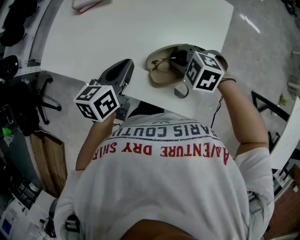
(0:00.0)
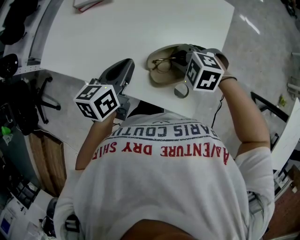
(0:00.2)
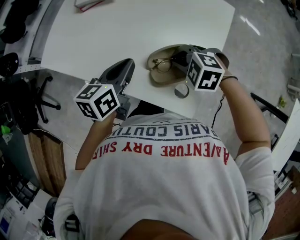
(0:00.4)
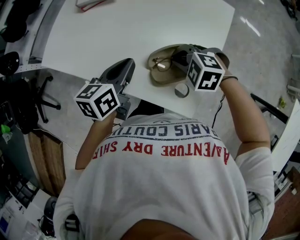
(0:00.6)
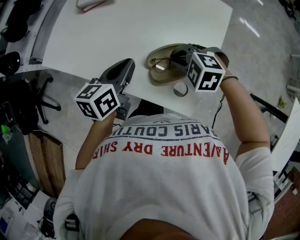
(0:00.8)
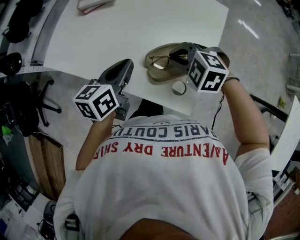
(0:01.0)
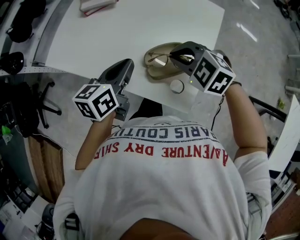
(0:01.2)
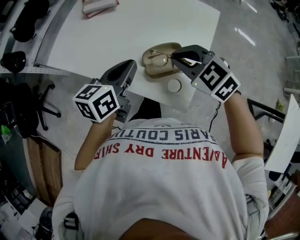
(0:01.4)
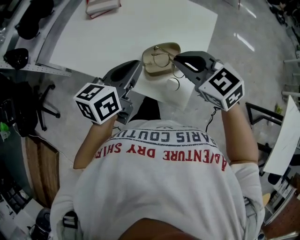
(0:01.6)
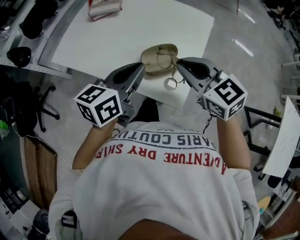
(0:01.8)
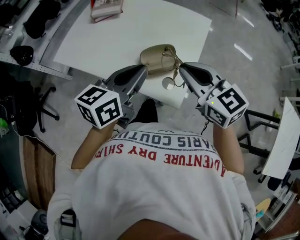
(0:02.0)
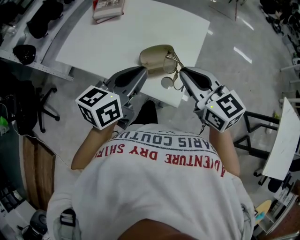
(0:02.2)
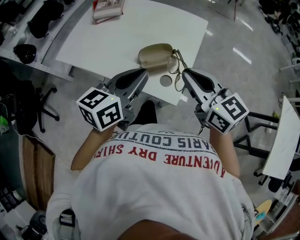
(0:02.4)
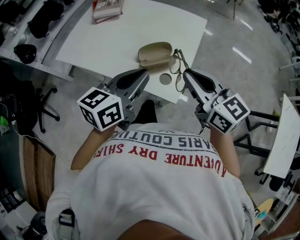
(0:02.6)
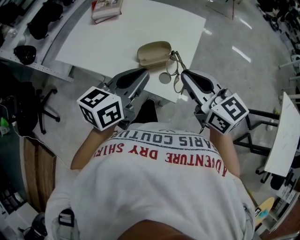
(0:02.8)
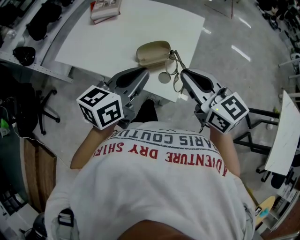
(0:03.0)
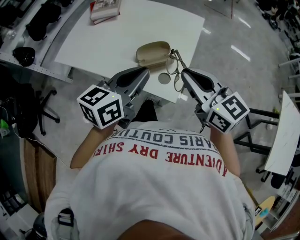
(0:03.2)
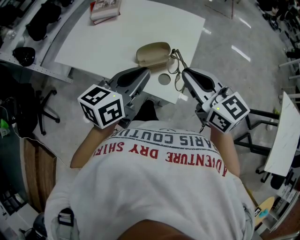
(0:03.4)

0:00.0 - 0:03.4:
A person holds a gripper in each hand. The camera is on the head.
0:00.0 - 0:01.6: The right gripper heads upward, covering roughly 15 cm, and rotates some 40 degrees; the left gripper travels upward and backward by roughly 10 cm.
0:01.6 - 0:03.4: The right gripper heads backward, upward and to the right, covering about 15 cm, and changes its angle by roughly 30 degrees. Meanwhile the left gripper shifts roughly 10 cm backward and to the right.

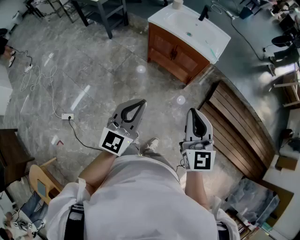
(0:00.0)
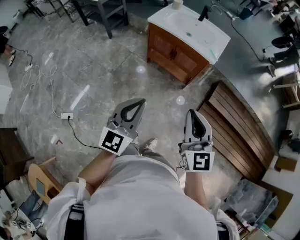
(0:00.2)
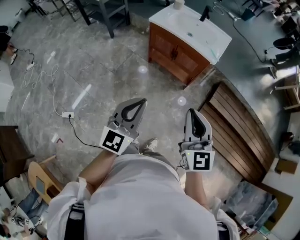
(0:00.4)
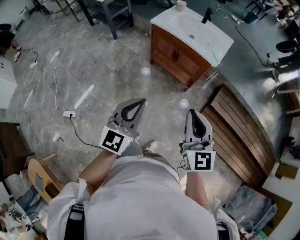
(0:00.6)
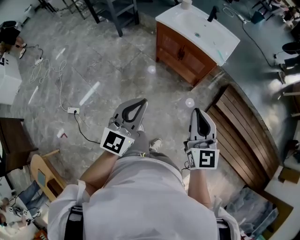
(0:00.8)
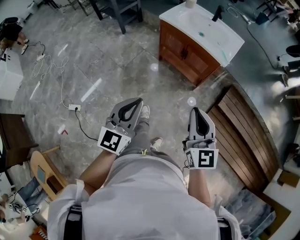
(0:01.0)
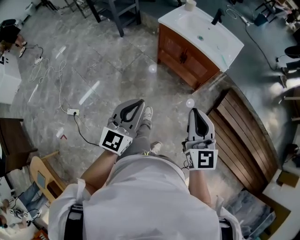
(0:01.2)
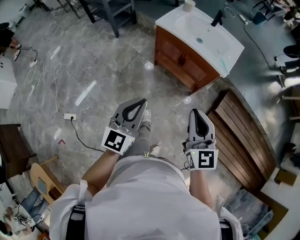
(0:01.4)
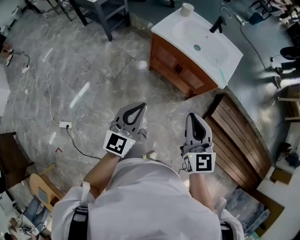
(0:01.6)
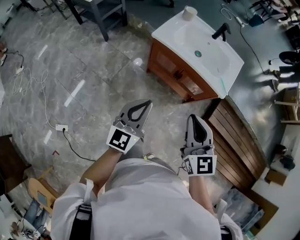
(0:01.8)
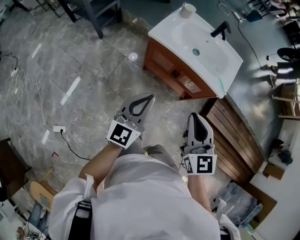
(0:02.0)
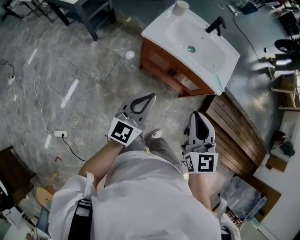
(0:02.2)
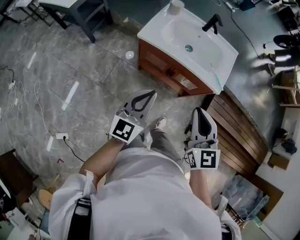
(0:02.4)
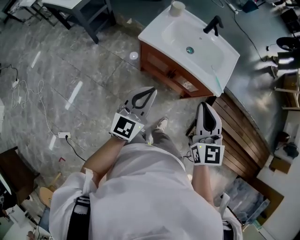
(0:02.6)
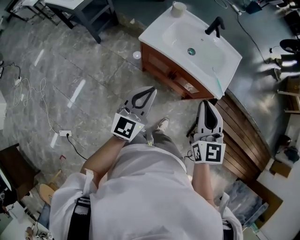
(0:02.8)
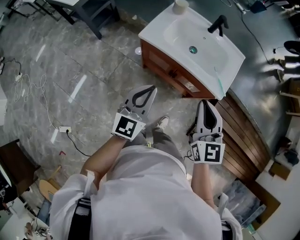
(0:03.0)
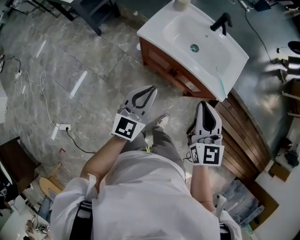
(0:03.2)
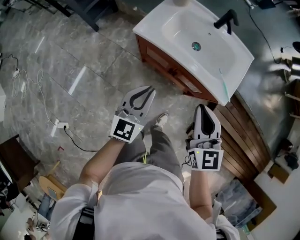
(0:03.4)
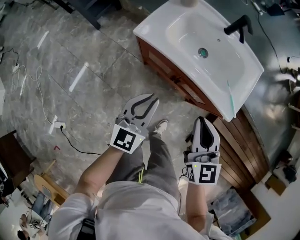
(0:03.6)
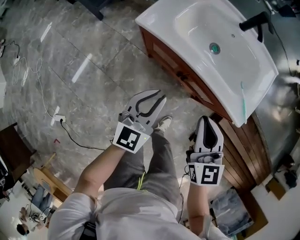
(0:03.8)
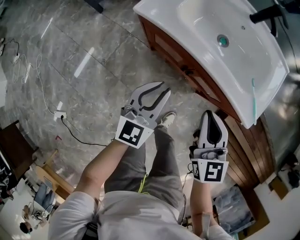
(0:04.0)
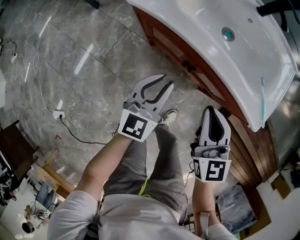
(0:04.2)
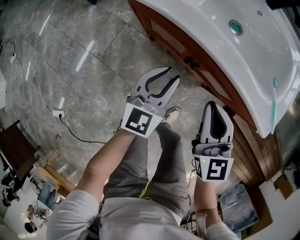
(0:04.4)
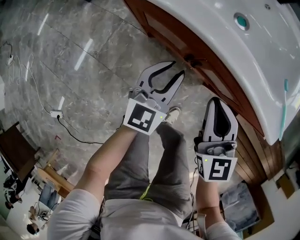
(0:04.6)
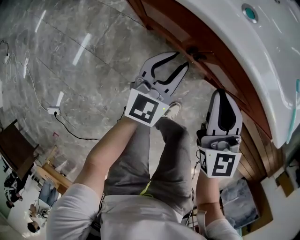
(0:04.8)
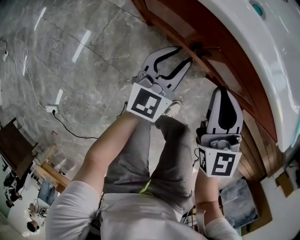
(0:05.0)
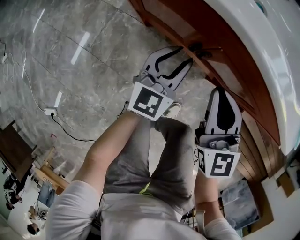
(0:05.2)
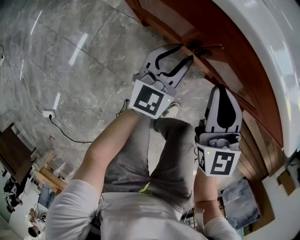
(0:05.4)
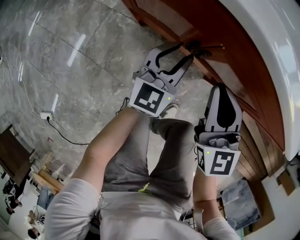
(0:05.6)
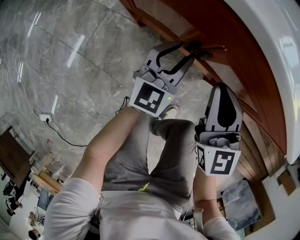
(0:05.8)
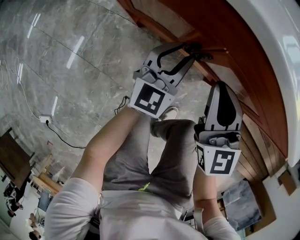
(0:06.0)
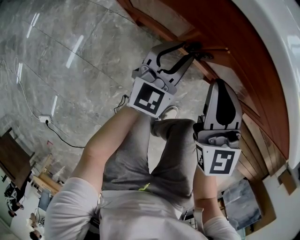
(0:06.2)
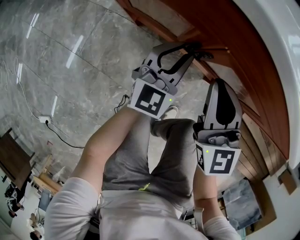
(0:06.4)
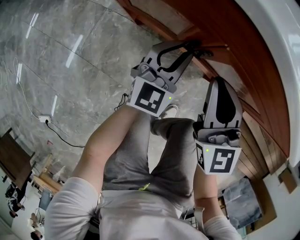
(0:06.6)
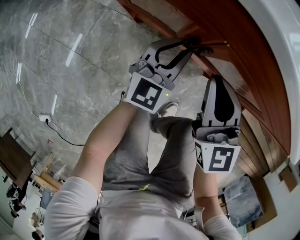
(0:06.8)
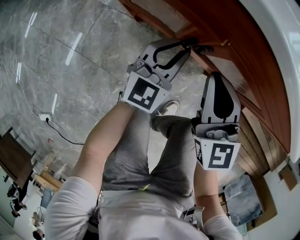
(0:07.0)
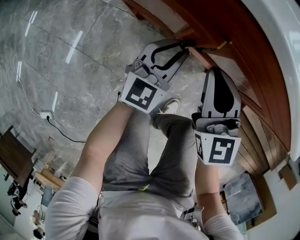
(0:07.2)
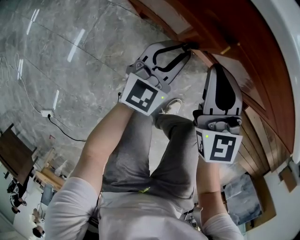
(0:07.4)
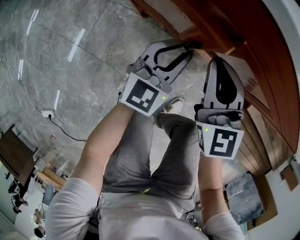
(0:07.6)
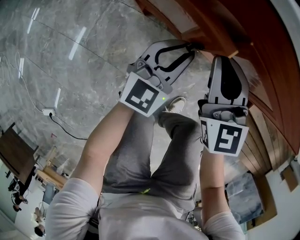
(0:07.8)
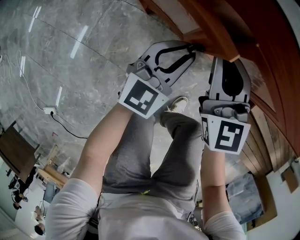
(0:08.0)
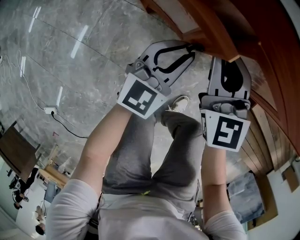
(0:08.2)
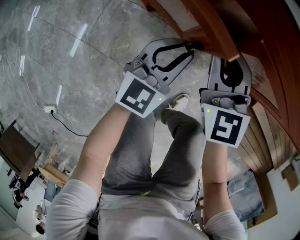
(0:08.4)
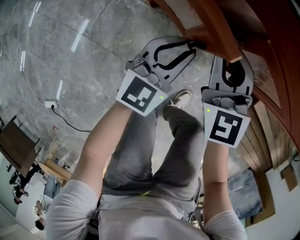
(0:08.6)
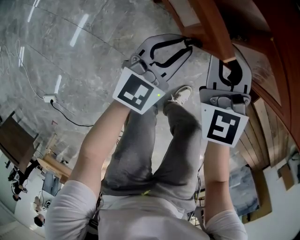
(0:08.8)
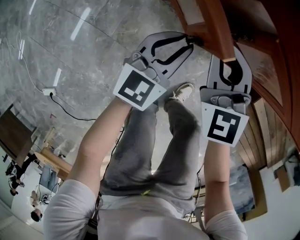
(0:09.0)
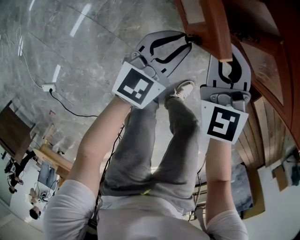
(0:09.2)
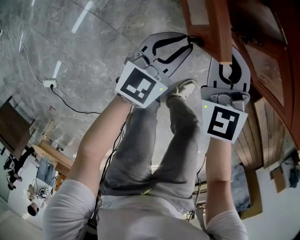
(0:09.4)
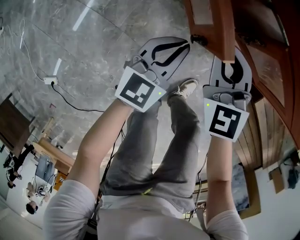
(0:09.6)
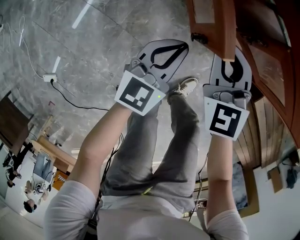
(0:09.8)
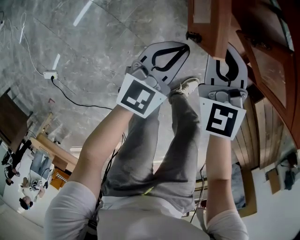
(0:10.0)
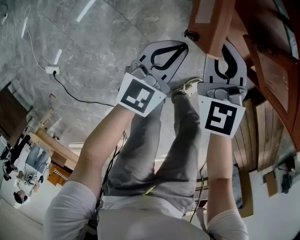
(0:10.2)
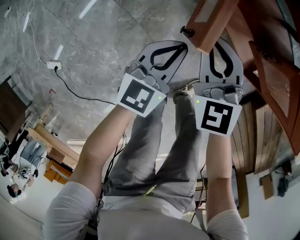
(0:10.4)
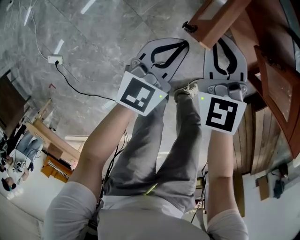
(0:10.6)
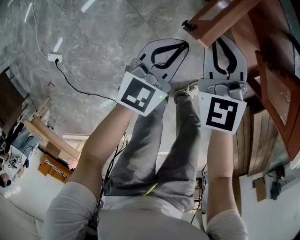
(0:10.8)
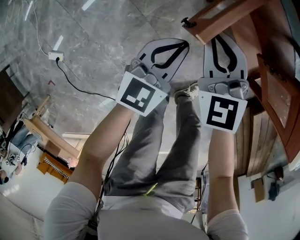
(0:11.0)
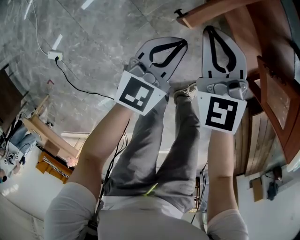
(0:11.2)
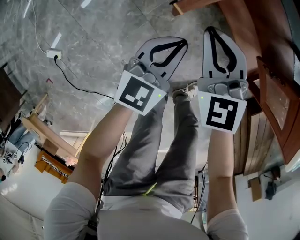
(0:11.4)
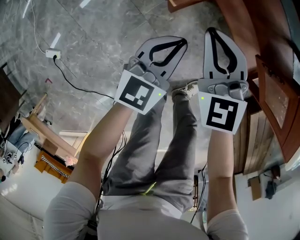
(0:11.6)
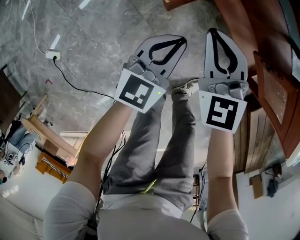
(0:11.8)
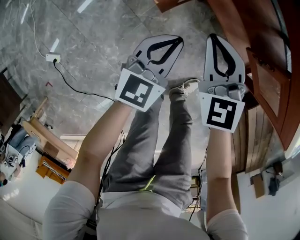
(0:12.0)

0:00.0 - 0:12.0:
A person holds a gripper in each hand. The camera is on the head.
0:00.0 - 0:01.6: Both grippers travel together forward, roughly 20 cm.
0:01.6 - 0:03.0: Both grippers travel together forward, roughly 25 cm.
0:03.0 - 0:04.4: Both grippers move downward, some 35 cm. The left gripper opens.
0:04.4 - 0:06.0: Both grippers move downward, about 20 cm.
0:06.0 - 0:07.6: The grippers move only a little.
0:07.6 - 0:09.0: The left gripper heads to the left and backward, covering some 10 cm, while the right gripper heads to the left, covering about 10 cm.
0:09.0 - 0:10.4: The right gripper travels to the left by about 15 cm; the left gripper moves to the left and backward, some 15 cm.
0:10.4 - 0:12.0: The right gripper goes to the left and returns, about 10 cm each way; the left gripper changes place by about 5 cm.

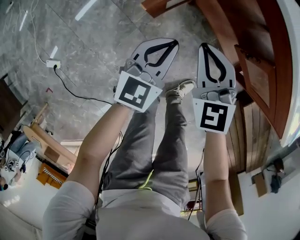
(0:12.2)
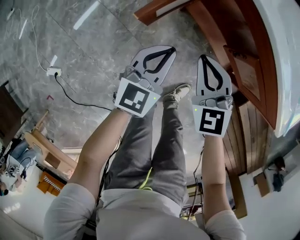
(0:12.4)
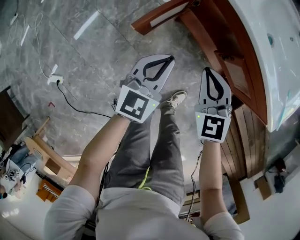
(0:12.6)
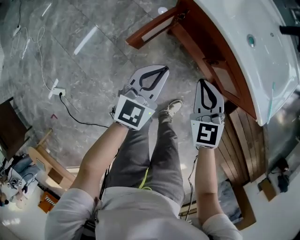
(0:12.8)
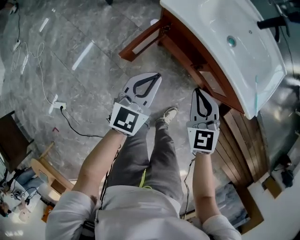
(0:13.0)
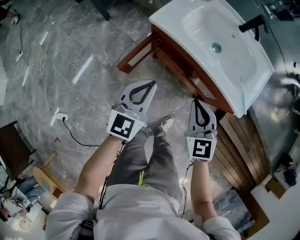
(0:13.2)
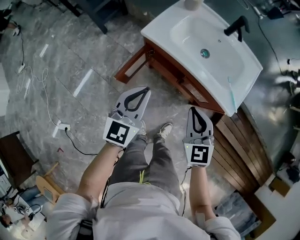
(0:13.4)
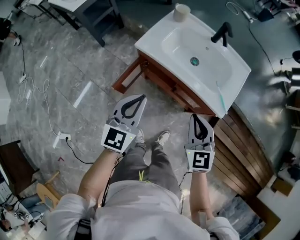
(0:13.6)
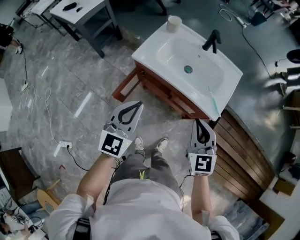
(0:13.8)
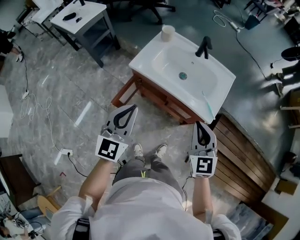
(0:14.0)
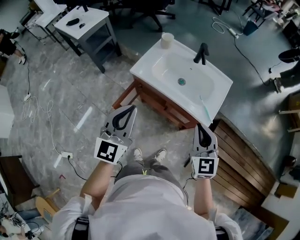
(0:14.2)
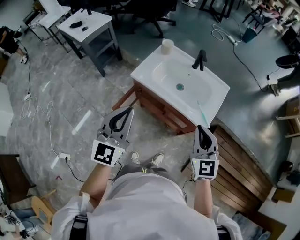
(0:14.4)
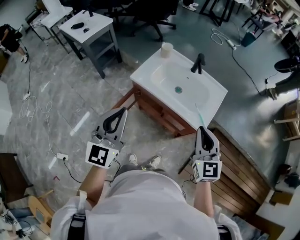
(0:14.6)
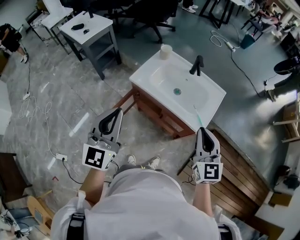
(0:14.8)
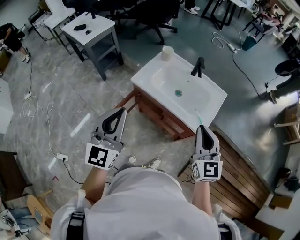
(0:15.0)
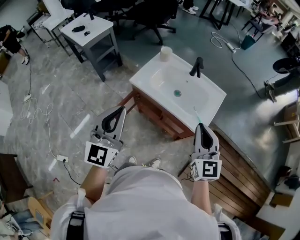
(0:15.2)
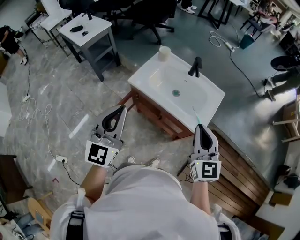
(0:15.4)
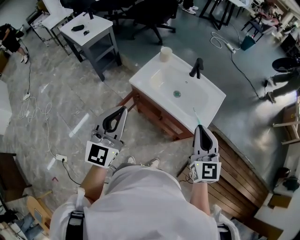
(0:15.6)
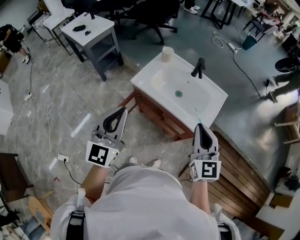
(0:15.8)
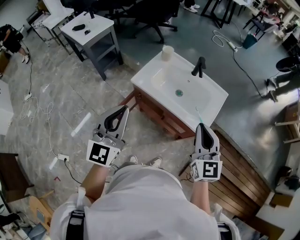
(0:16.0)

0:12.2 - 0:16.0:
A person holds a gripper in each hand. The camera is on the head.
0:12.2 - 0:13.4: The left gripper heads upward, covering some 35 cm; the right gripper shifts about 35 cm upward and to the right, and swivels some 20 degrees.
0:13.4 - 0:14.8: The right gripper heads upward and to the right, covering some 25 cm; the left gripper shifts some 25 cm upward.
0:14.8 - 0:16.0: The grippers make only small movements.

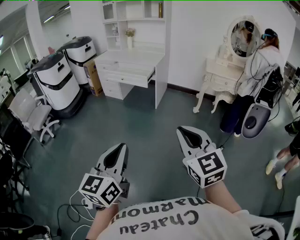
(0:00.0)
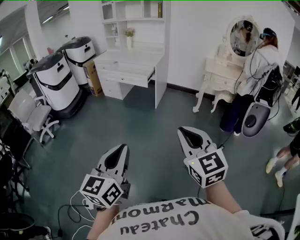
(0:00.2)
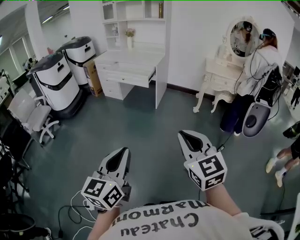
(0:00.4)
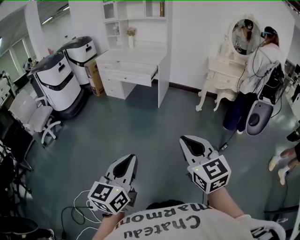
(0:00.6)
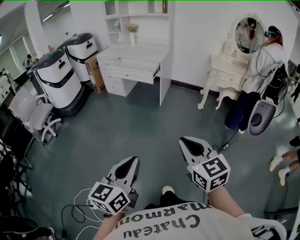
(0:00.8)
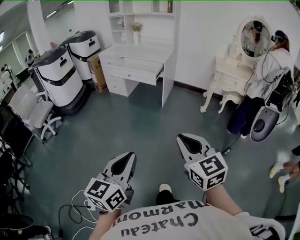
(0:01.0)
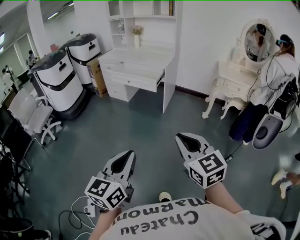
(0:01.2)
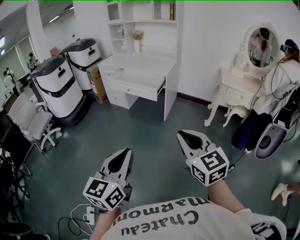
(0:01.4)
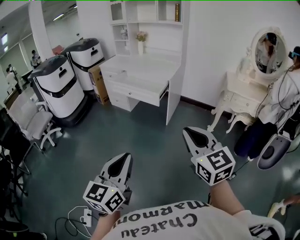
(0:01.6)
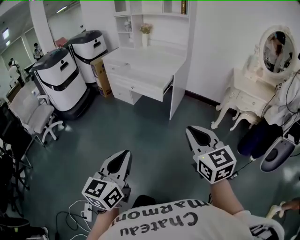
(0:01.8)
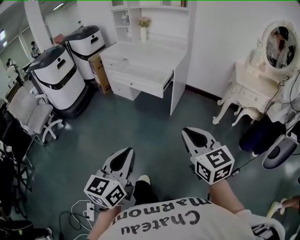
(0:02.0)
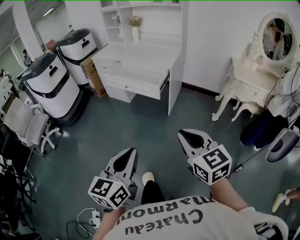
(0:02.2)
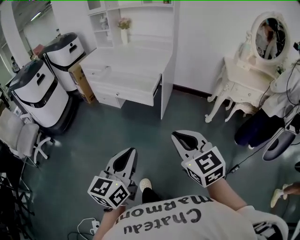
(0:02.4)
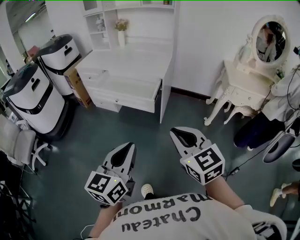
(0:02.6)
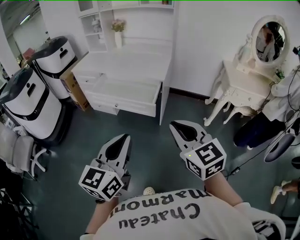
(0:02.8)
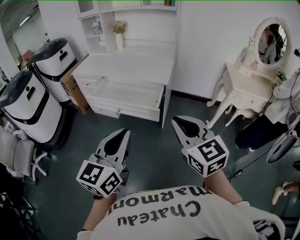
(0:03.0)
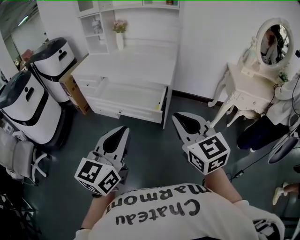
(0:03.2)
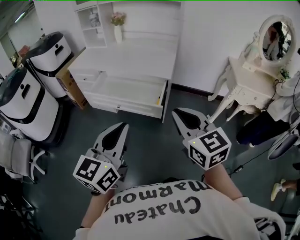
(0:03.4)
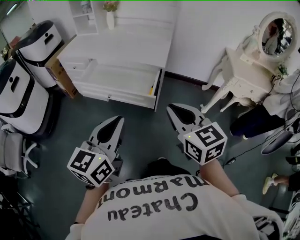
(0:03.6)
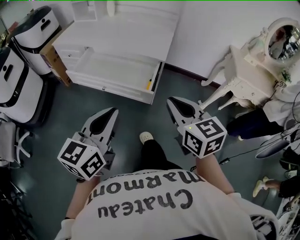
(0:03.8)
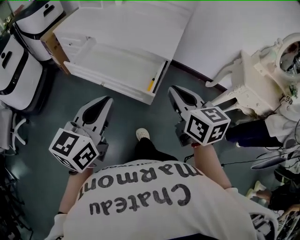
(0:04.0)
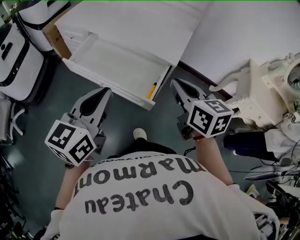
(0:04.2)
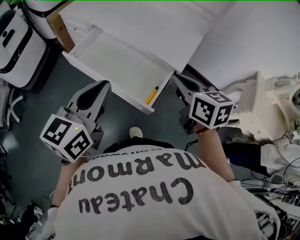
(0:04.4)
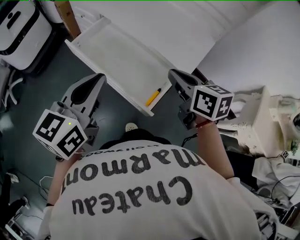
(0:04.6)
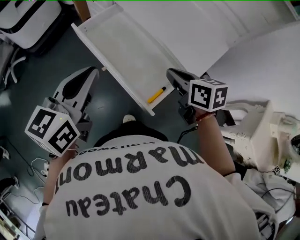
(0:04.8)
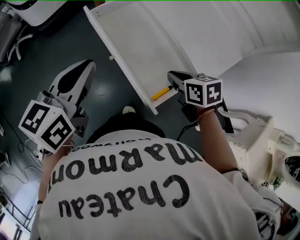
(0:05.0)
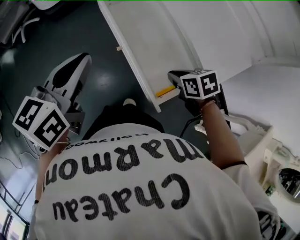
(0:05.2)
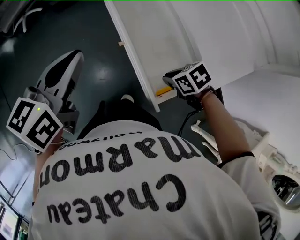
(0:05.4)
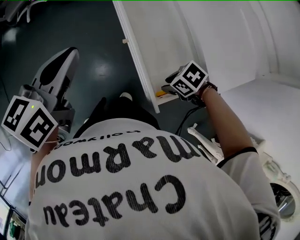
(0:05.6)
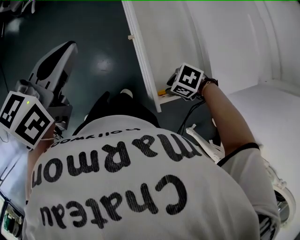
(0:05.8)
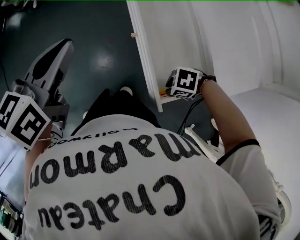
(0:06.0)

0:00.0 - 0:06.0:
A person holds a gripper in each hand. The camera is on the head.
0:00.0 - 0:01.6: Both grippers travel together forward, roughly 30 cm.
0:01.6 - 0:03.0: The grippers both shift forward by approximately 40 cm.
0:03.0 - 0:04.4: The two grippers go some 35 cm forward. The right gripper changes its angle by approximately 30 degrees.
0:04.4 - 0:06.0: The left gripper ends up approximately 20 cm from where it was, and turns by some 40 degrees; the right gripper moves downward, roughly 30 cm, and points its fingers approximately 40 degrees further downward.
